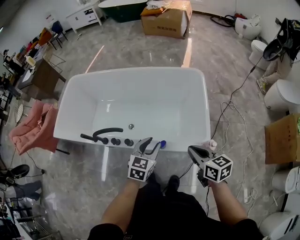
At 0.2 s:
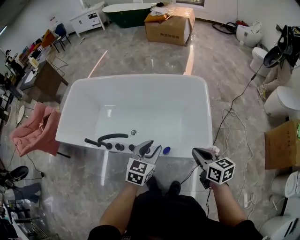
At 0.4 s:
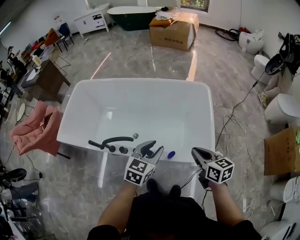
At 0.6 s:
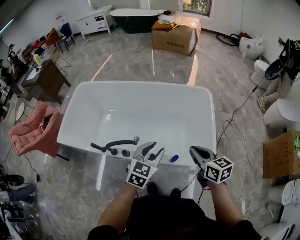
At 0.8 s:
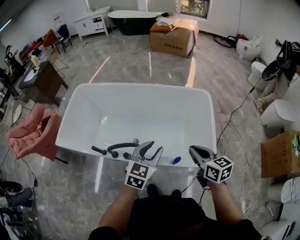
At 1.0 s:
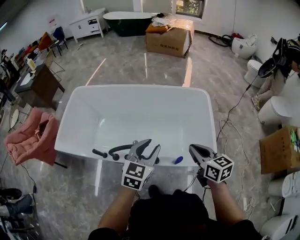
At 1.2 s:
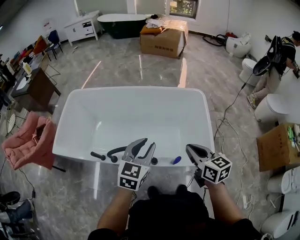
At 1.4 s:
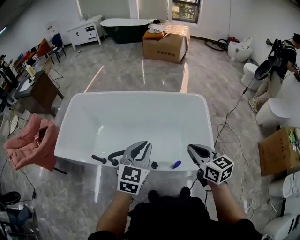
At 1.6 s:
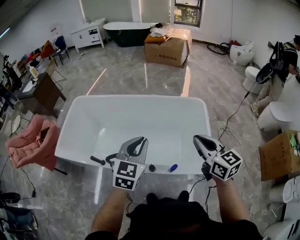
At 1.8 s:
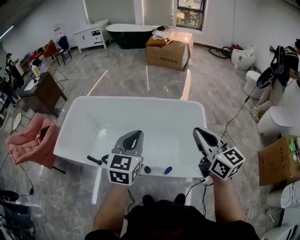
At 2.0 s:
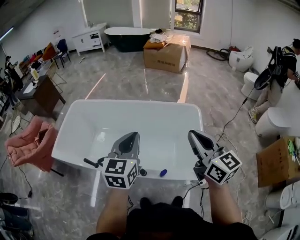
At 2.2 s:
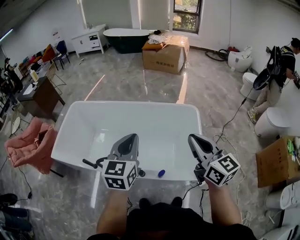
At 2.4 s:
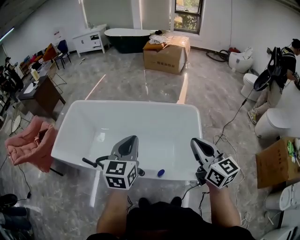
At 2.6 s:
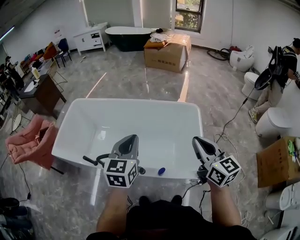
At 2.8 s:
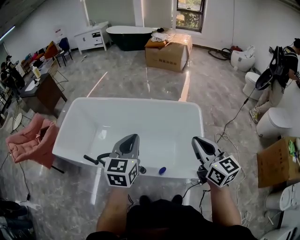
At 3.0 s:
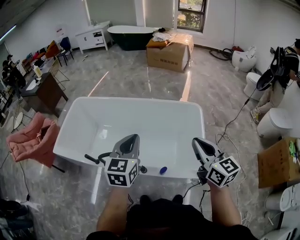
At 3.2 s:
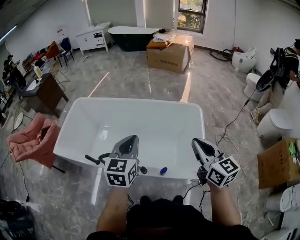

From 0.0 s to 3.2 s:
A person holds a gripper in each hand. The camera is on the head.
From 0.0 s to 1.6 s: The right gripper heads upward, forward and to the left, covering roughly 20 cm, and swivels approximately 20 degrees. Meanwhile the left gripper goes some 20 cm upward and to the left, and closes.
From 1.6 s to 3.2 s: The right gripper shifts by roughly 5 cm.

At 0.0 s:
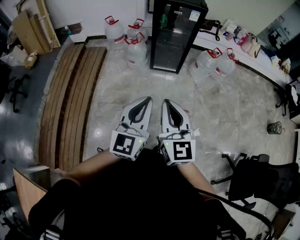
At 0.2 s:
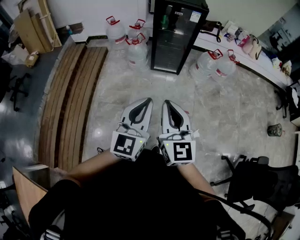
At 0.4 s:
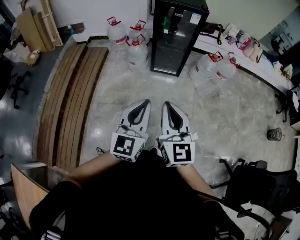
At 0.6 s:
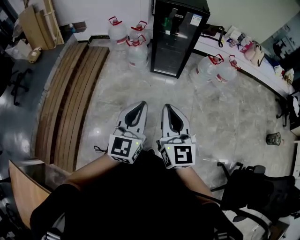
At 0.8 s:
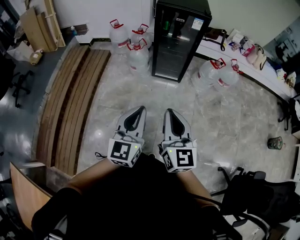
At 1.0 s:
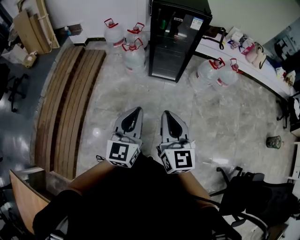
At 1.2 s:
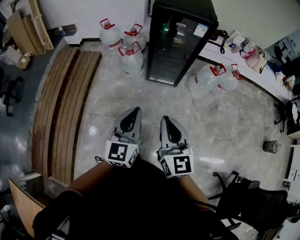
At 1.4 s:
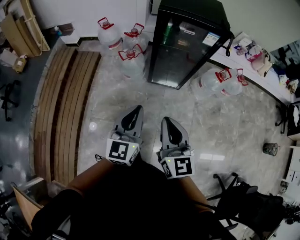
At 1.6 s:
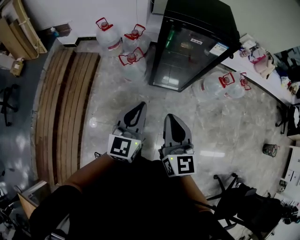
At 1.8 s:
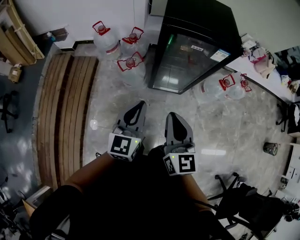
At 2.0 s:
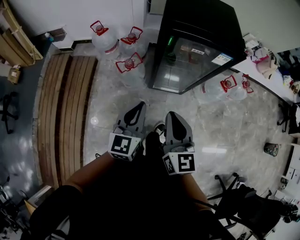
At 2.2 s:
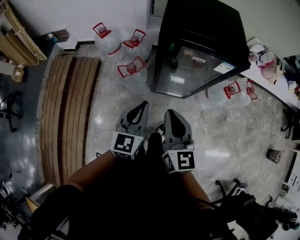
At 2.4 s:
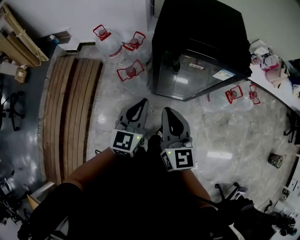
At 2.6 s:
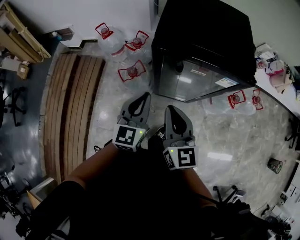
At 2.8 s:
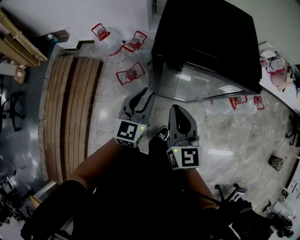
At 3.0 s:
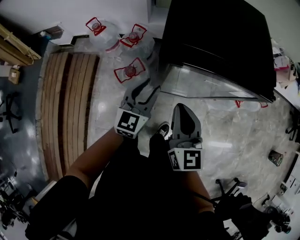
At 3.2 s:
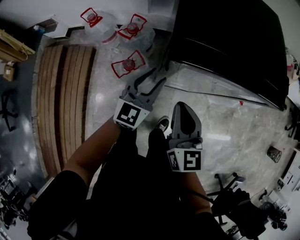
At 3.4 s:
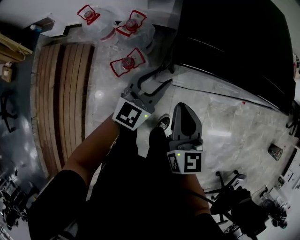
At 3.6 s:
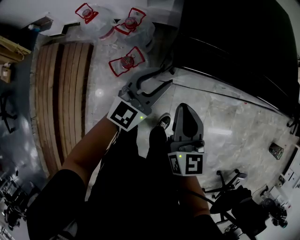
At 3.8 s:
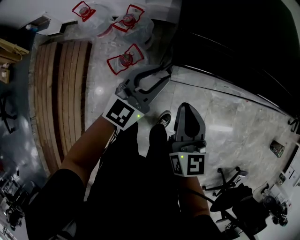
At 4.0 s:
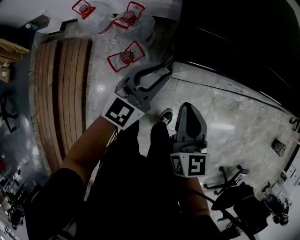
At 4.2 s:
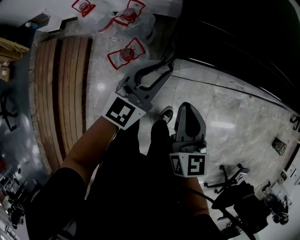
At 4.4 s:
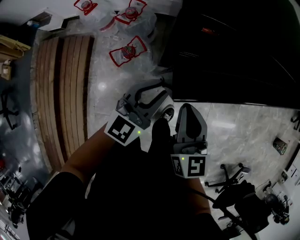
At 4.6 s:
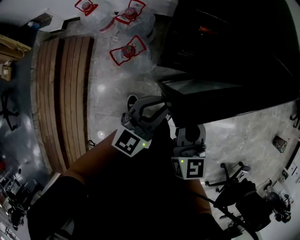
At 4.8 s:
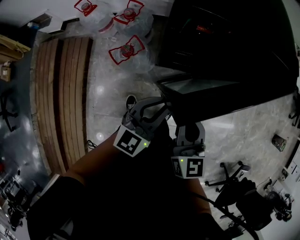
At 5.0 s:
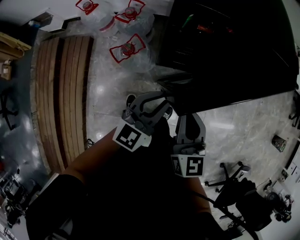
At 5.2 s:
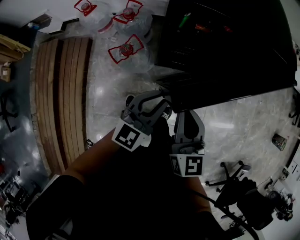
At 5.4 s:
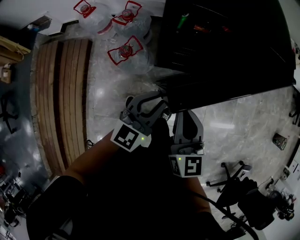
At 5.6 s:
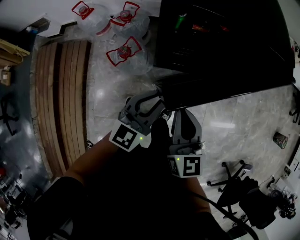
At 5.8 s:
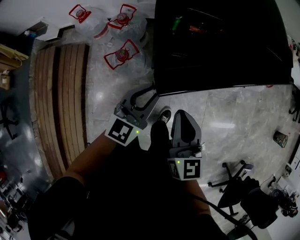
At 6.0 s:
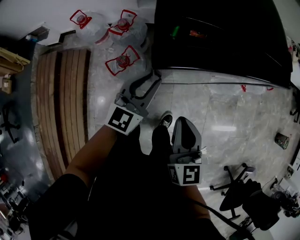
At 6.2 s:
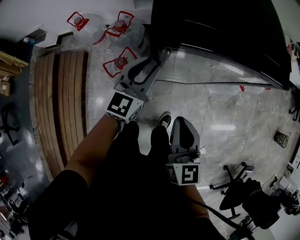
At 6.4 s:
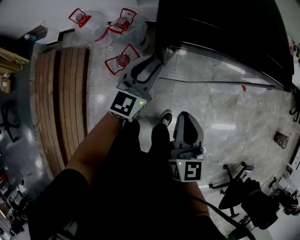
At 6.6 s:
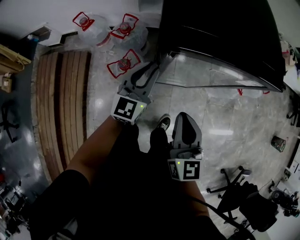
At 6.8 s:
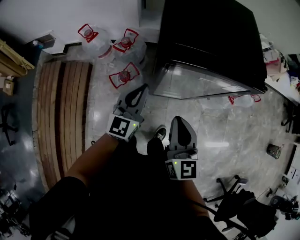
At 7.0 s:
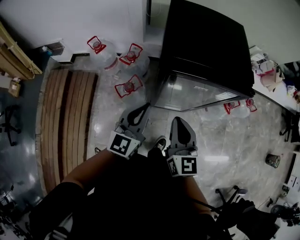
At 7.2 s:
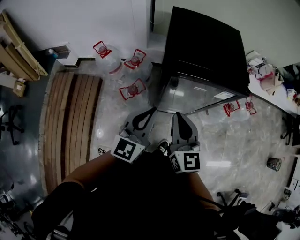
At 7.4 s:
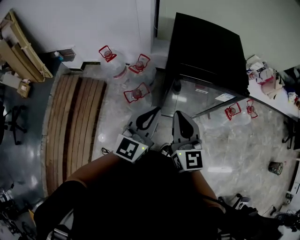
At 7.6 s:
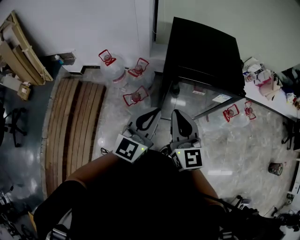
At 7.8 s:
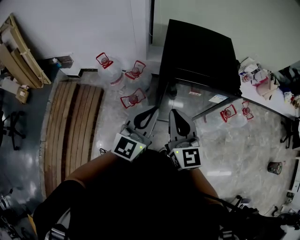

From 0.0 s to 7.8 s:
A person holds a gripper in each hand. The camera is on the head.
From 0.0 s to 1.6 s: The pair of grippers is taken forward, roughly 40 cm.
From 1.6 s to 3.2 s: Both grippers travel together forward, some 35 cm. The left gripper opens.
From 3.2 s to 4.6 s: The right gripper is displaced backward by about 5 cm. The left gripper shifts approximately 15 cm backward and to the right, and closes up.
From 4.6 s to 6.2 s: The left gripper travels forward by roughly 15 cm.
From 6.2 s to 7.8 s: The right gripper moves upward, approximately 20 cm, and turns by roughly 20 degrees. The left gripper heads upward and backward, covering about 30 cm, and closes its fingers.

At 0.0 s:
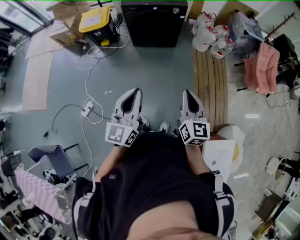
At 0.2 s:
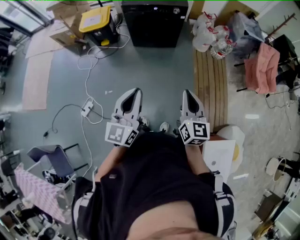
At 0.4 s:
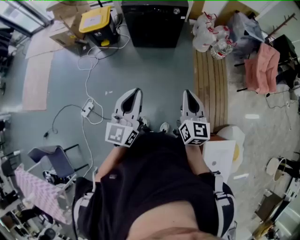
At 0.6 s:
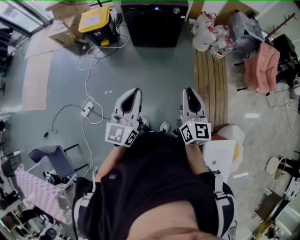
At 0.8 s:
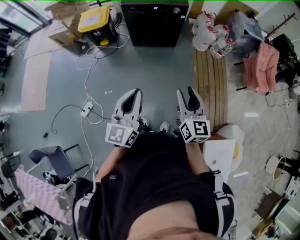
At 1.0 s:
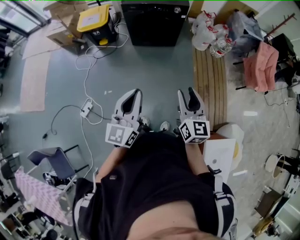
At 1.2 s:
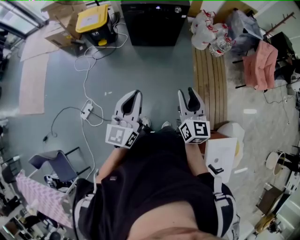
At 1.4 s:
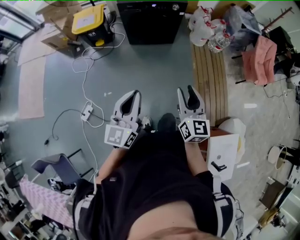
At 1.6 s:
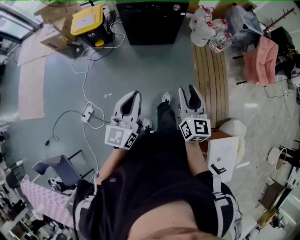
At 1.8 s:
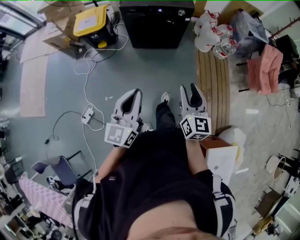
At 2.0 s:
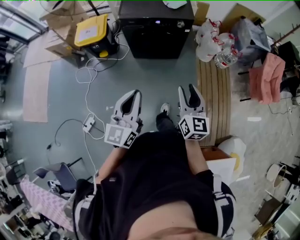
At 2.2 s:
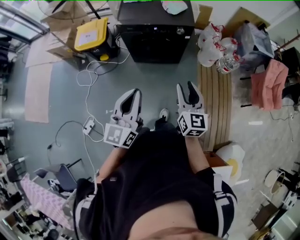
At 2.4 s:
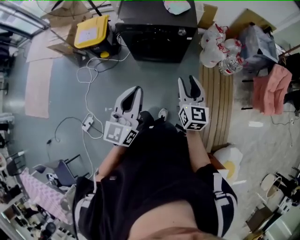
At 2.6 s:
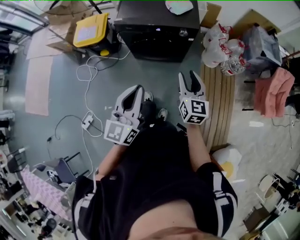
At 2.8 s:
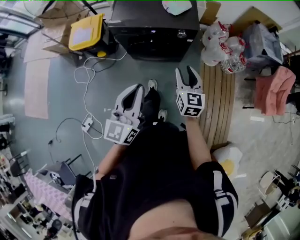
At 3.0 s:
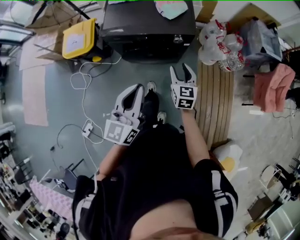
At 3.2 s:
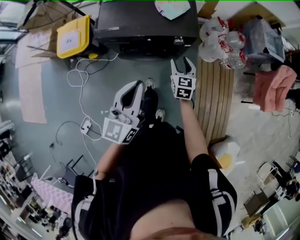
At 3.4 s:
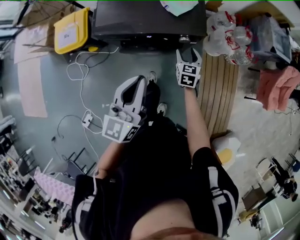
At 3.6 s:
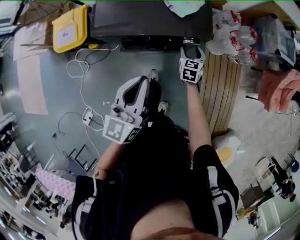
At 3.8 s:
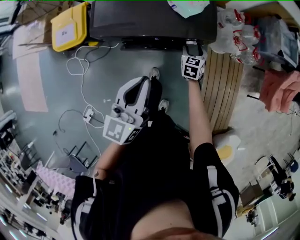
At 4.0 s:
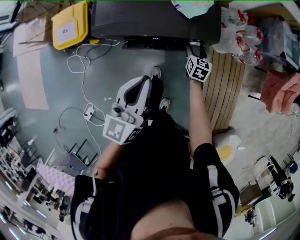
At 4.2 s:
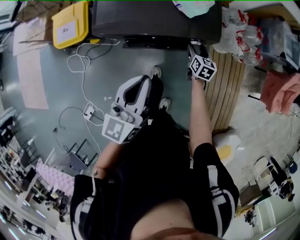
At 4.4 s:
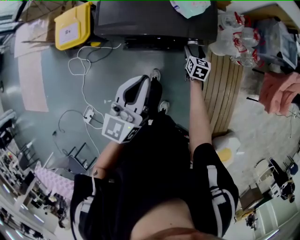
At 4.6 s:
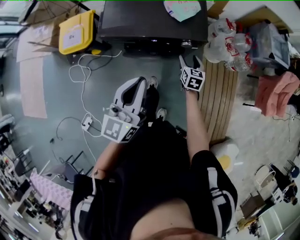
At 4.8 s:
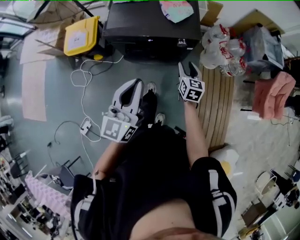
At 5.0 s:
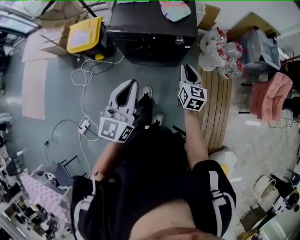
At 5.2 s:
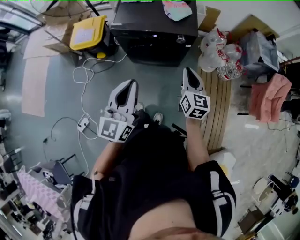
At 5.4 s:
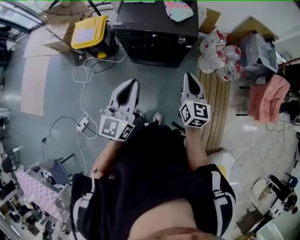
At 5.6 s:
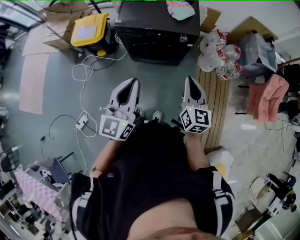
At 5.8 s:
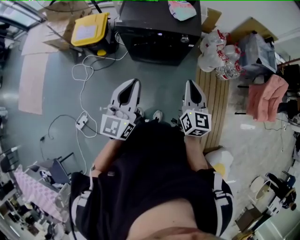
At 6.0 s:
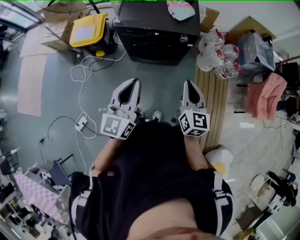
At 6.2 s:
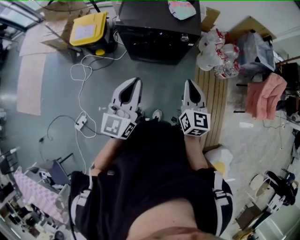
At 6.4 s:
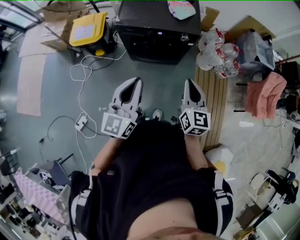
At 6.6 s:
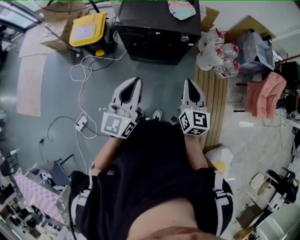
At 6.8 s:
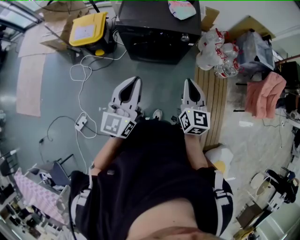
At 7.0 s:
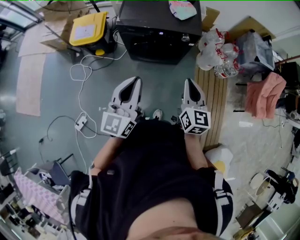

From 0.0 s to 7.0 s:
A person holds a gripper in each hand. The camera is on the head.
From 0.0 s to 1.4 s: The two grippers go approximately 10 cm to the left and forward. The right gripper opens its fingers.
From 1.4 s to 2.8 s: Both grippers are carried forward, some 50 cm.
From 2.8 s to 4.2 s: The right gripper goes some 50 cm forward and downward, and swivels about 30 degrees, while the left gripper goes some 30 cm forward.
From 4.2 s to 5.6 s: The right gripper moves backward and upward, about 60 cm, turns by approximately 30 degrees, and closes its fingers; the left gripper is displaced backward and upward by approximately 40 cm.
From 5.6 s to 7.0 s: The grippers move only a little.

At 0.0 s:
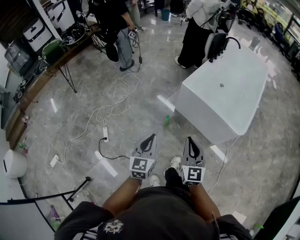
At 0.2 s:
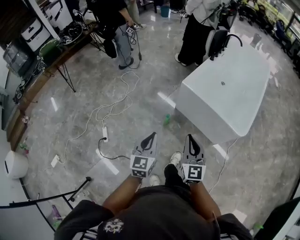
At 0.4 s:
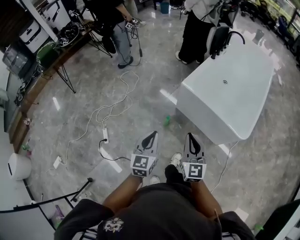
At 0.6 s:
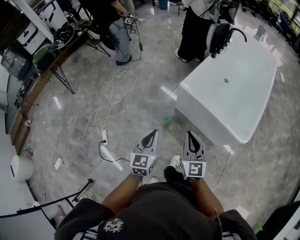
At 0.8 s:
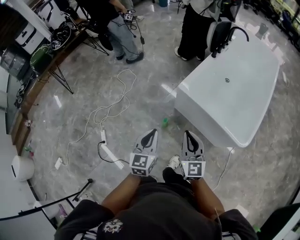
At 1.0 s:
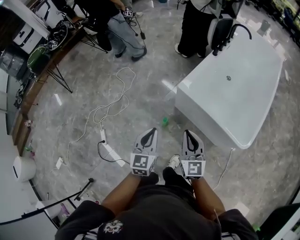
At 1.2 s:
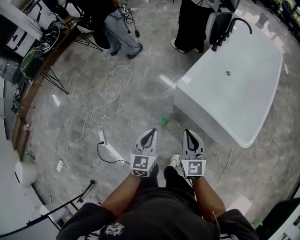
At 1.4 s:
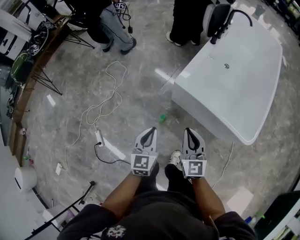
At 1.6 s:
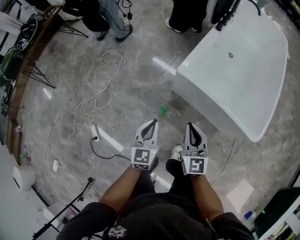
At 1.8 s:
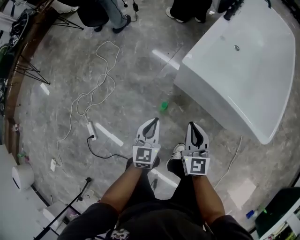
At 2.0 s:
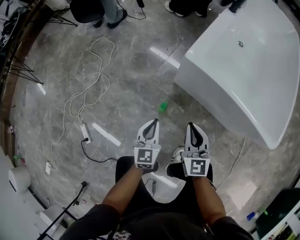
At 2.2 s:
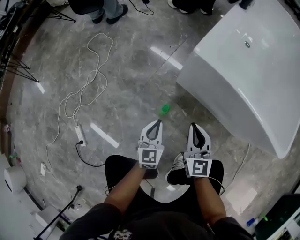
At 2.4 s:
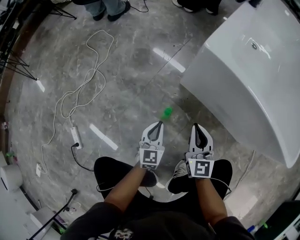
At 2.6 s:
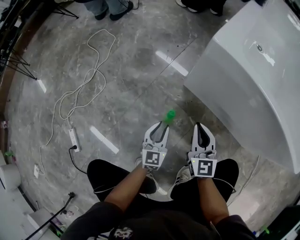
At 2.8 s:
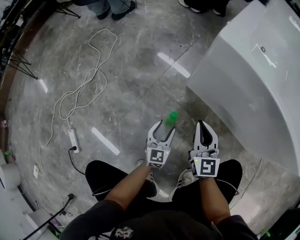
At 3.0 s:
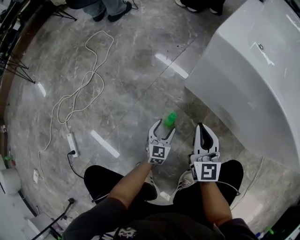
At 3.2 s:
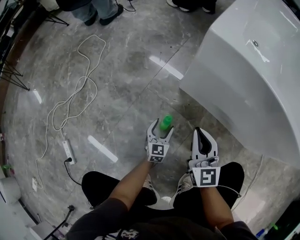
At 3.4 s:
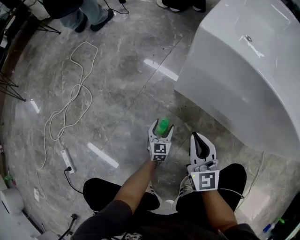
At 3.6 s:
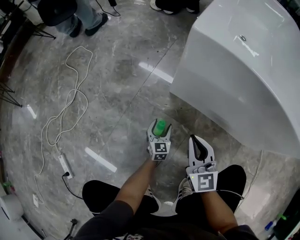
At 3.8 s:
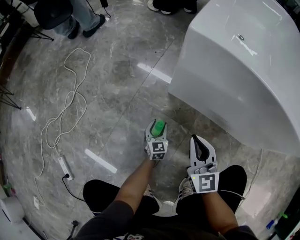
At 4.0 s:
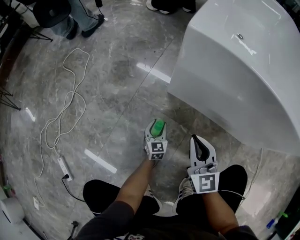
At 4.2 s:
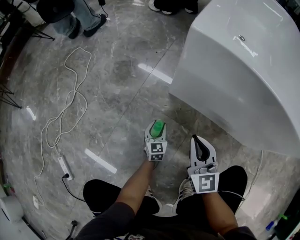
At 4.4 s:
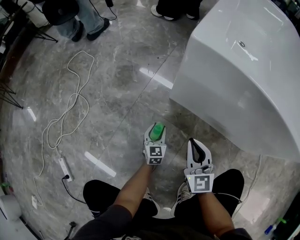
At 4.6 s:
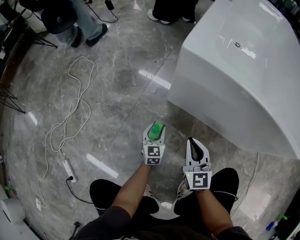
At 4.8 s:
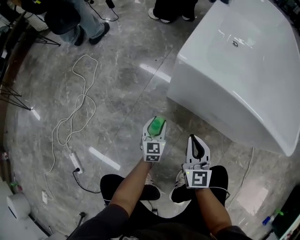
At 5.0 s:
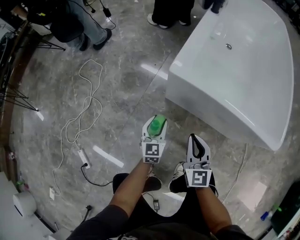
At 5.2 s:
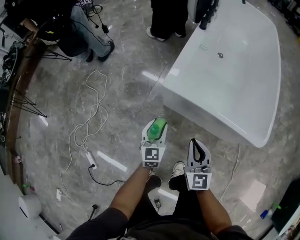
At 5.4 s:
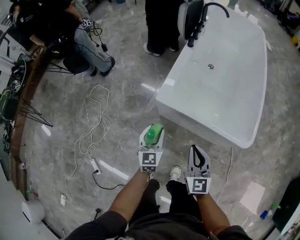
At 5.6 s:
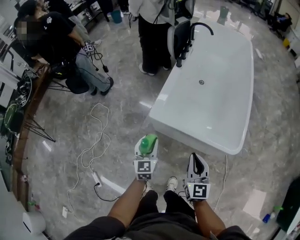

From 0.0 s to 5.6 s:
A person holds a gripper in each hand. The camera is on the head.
From 0.0 s to 1.4 s: The grippers both shift forward and downward by some 35 cm.
From 1.4 s to 2.8 s: The grippers both shift downward by some 60 cm. The left gripper opens up.
From 2.8 s to 4.2 s: The left gripper goes roughly 15 cm downward and forward.
From 4.2 s to 5.6 s: Both grippers travel together upward, roughly 70 cm.
